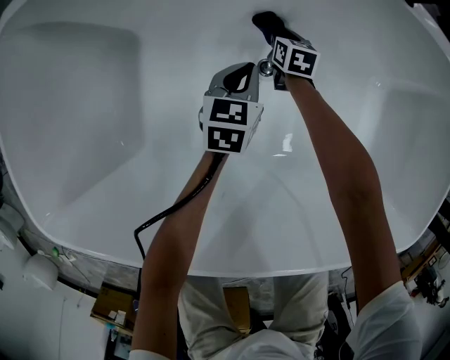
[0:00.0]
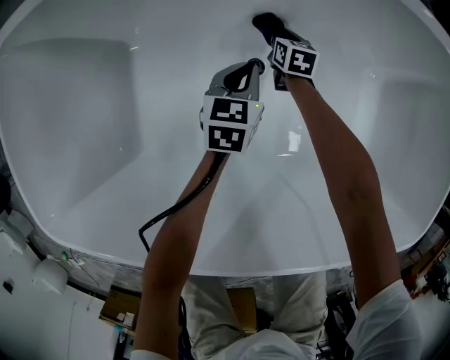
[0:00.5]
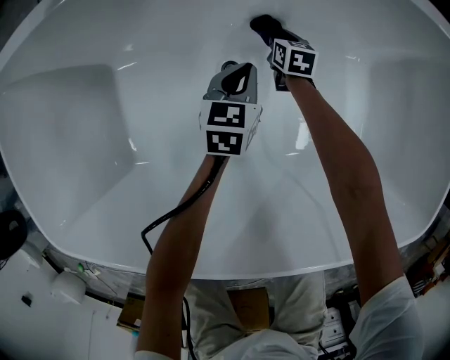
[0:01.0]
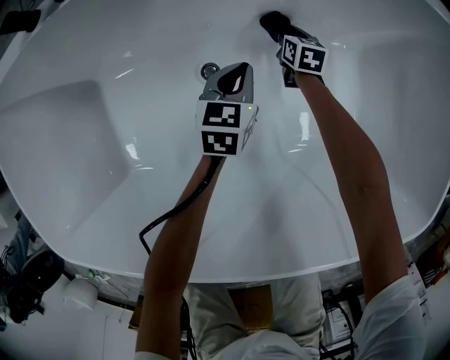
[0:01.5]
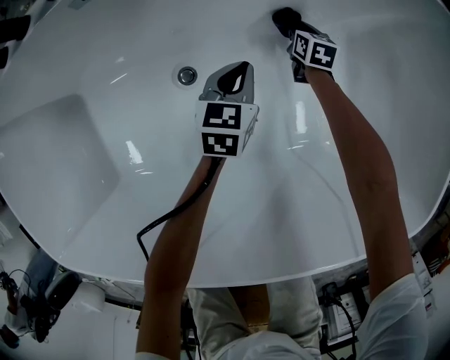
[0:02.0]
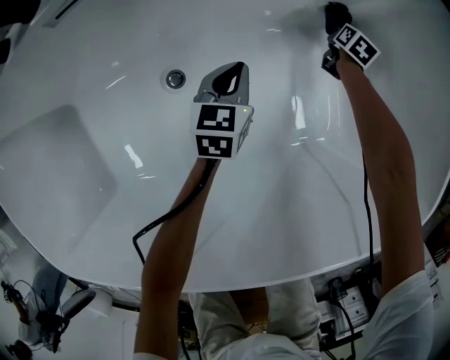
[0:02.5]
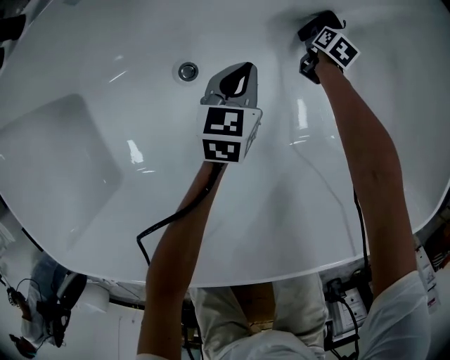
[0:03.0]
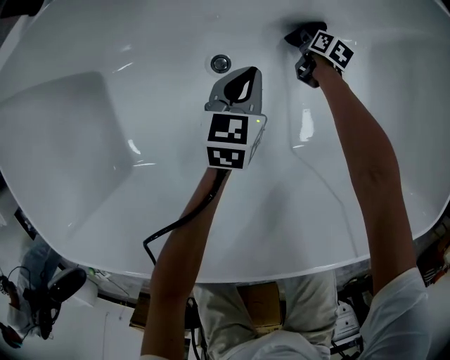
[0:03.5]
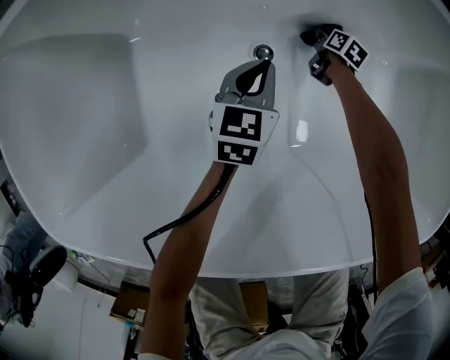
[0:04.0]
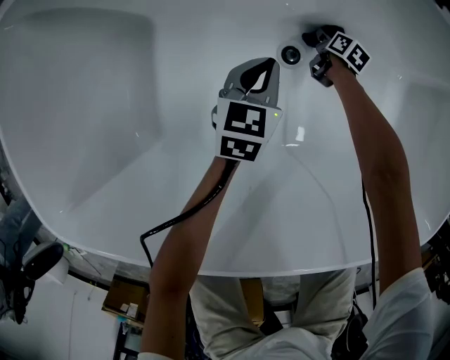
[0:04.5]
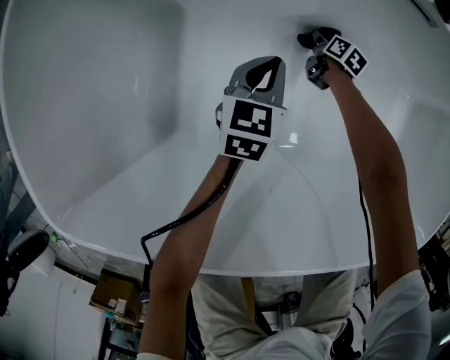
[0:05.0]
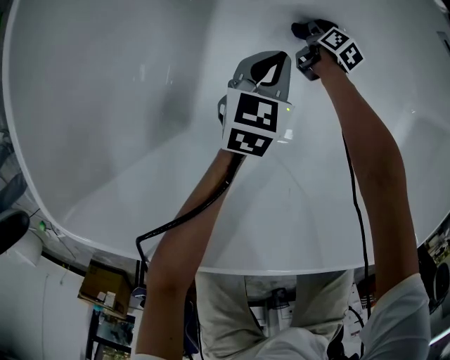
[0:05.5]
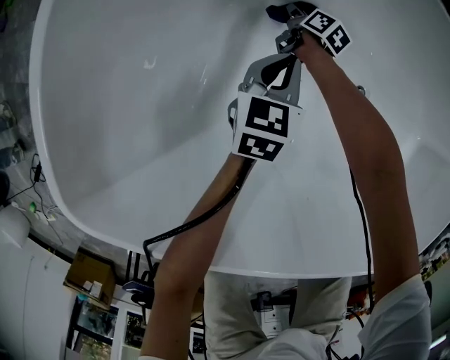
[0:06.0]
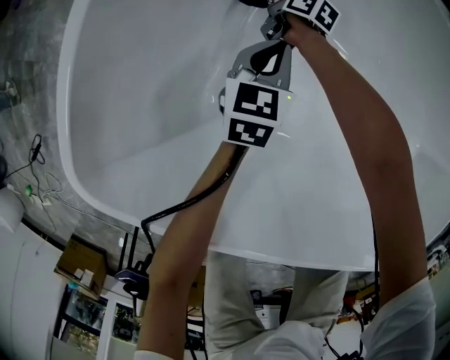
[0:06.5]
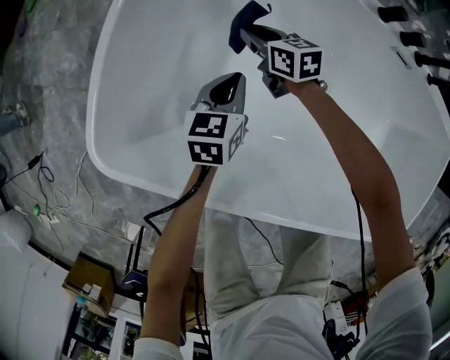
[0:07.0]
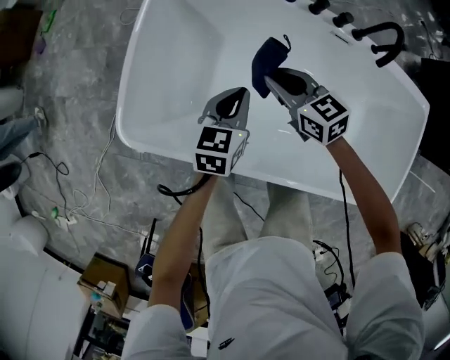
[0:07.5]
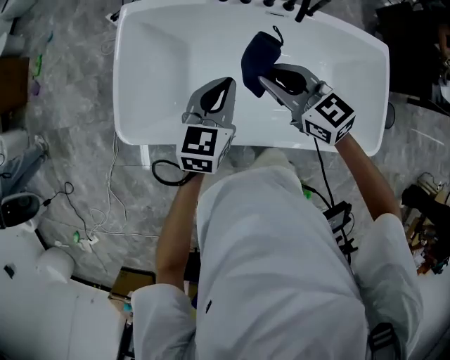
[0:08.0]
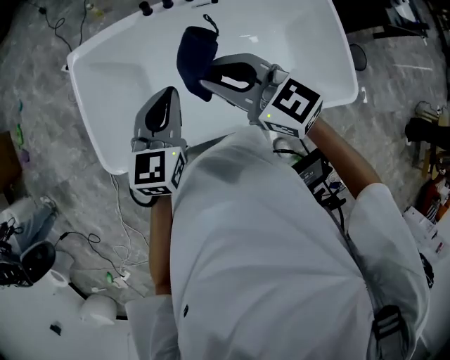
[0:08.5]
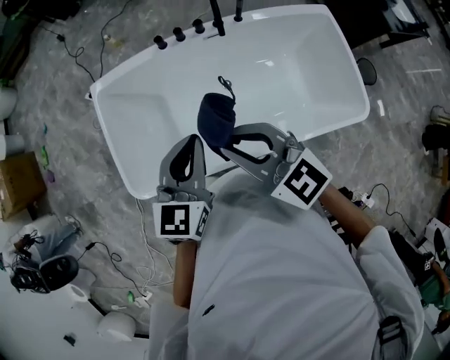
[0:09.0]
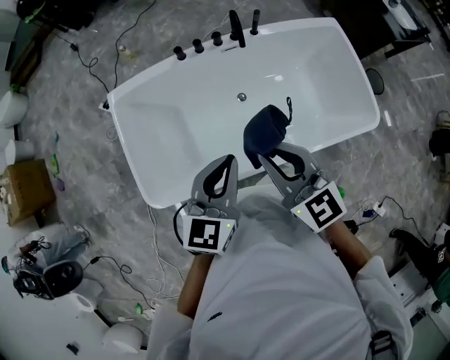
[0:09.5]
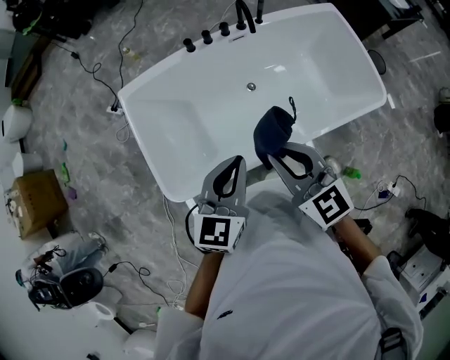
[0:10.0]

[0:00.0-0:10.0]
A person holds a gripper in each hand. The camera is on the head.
0:00.0 to 0:02.0: Both grippers move to the right, about 35 cm.
0:02.0 to 0:04.0: The right gripper shifts some 25 cm to the left, downward and backward, and turns by some 20 degrees. The left gripper travels to the left and backward by some 25 cm.
0:04.0 to 0:06.0: The right gripper goes approximately 50 cm to the left, and swivels approximately 20 degrees. Meanwhile the left gripper moves to the left, some 35 cm.
0:06.0 to 0:08.0: The right gripper is displaced upward and backward by roughly 90 cm, and rolls counterclockwise, seen from behind, by some 60 degrees, while the left gripper goes about 60 cm upward, and swivels roughly 20 degrees.
0:08.0 to 0:10.0: The left gripper ends up roughly 20 cm from where it was, and swivels roughly 20 degrees, while the right gripper moves roughly 20 cm, and turns by roughly 30 degrees.

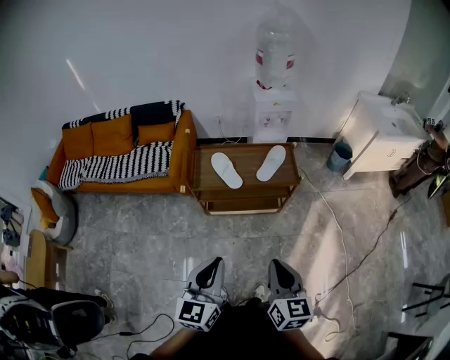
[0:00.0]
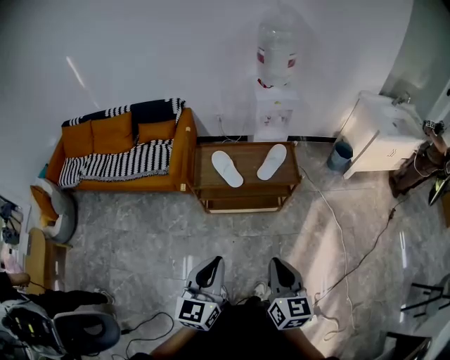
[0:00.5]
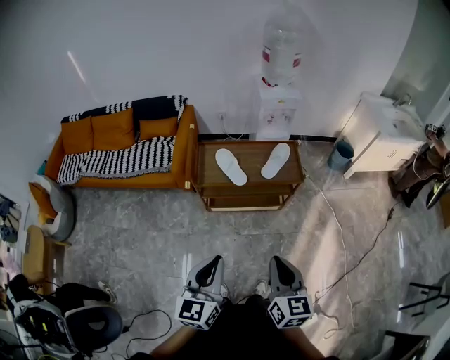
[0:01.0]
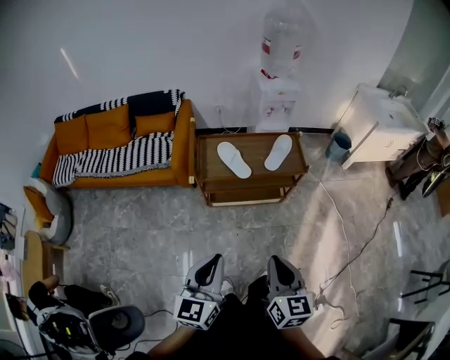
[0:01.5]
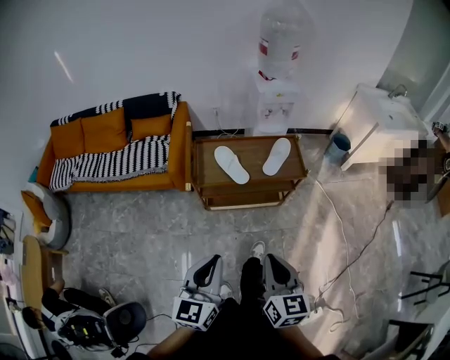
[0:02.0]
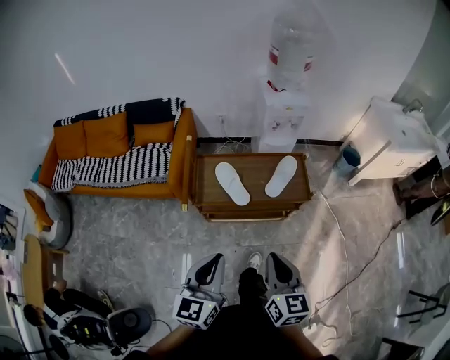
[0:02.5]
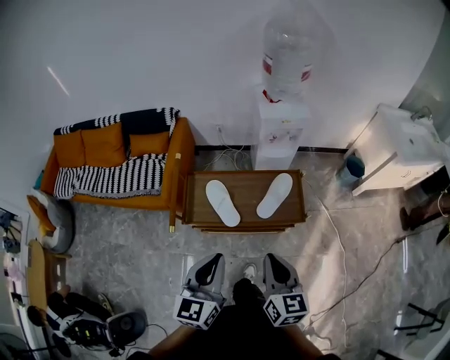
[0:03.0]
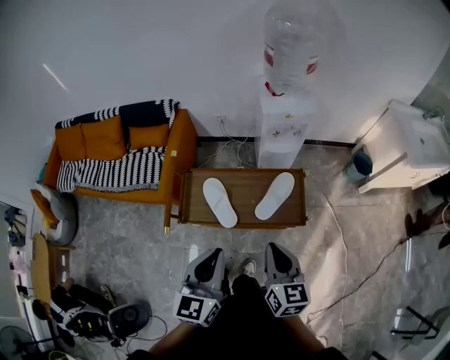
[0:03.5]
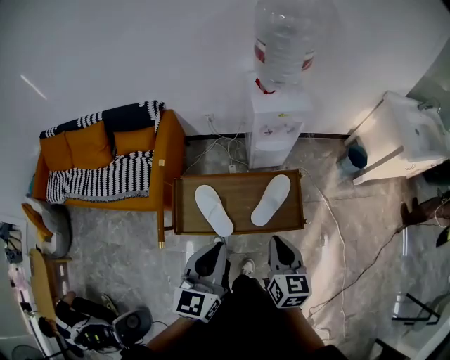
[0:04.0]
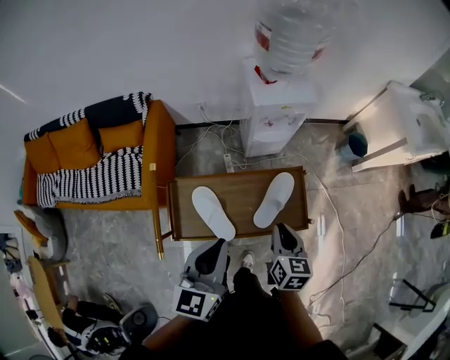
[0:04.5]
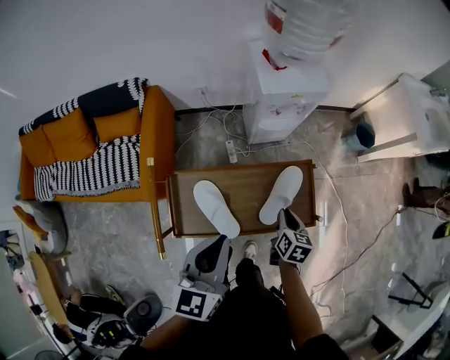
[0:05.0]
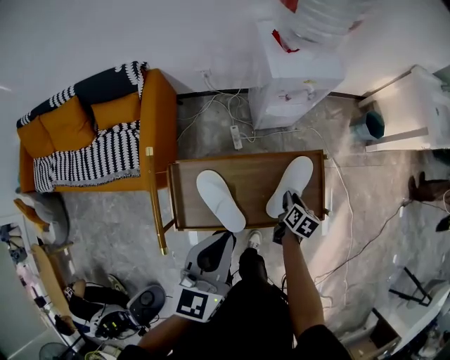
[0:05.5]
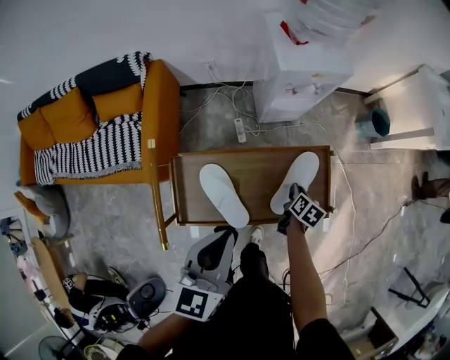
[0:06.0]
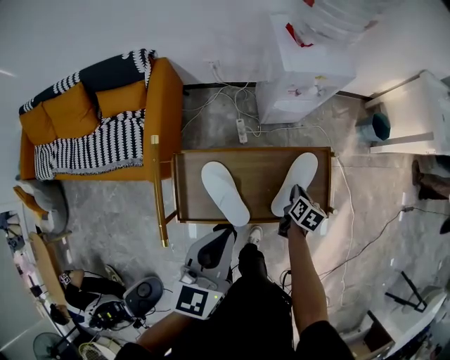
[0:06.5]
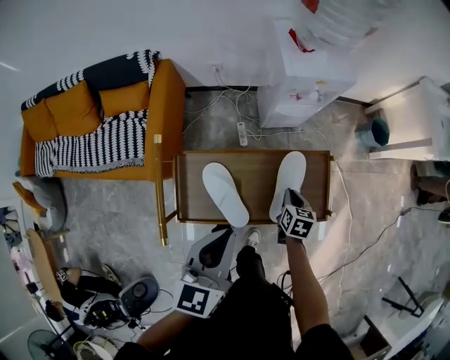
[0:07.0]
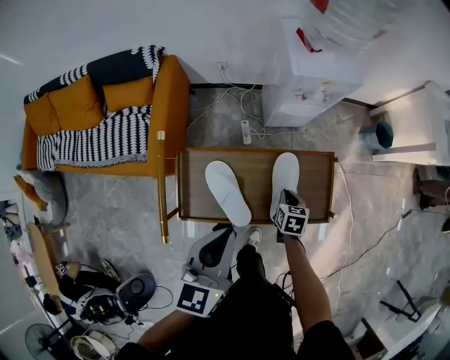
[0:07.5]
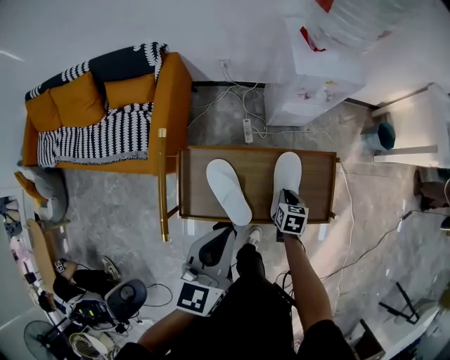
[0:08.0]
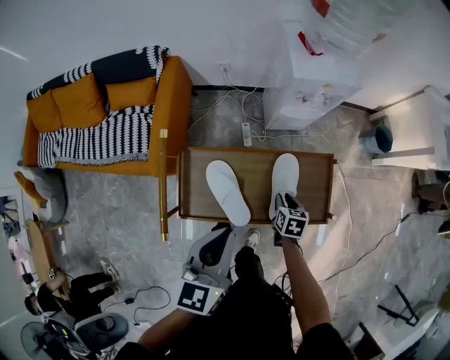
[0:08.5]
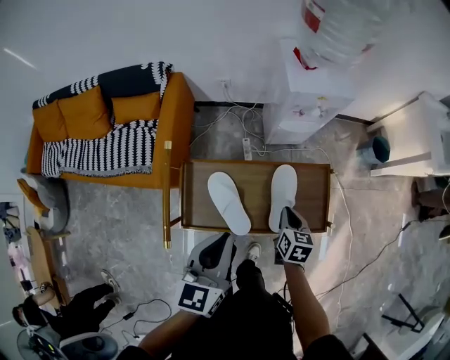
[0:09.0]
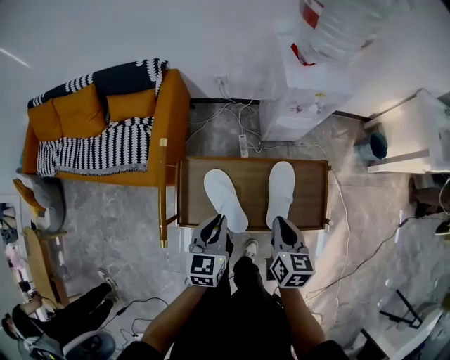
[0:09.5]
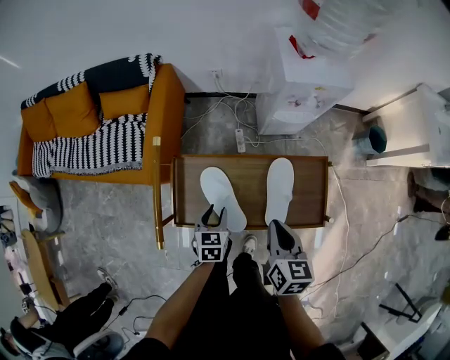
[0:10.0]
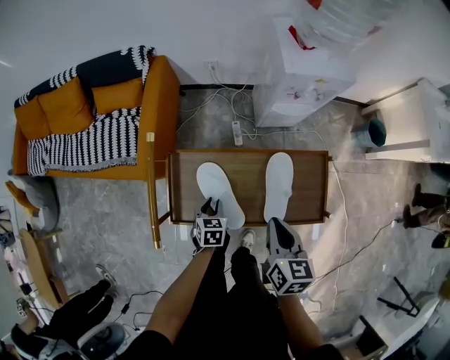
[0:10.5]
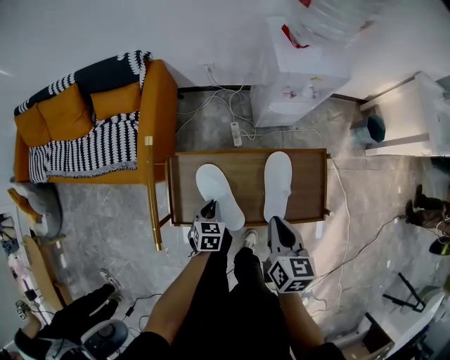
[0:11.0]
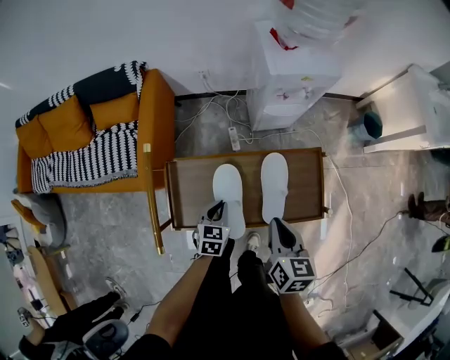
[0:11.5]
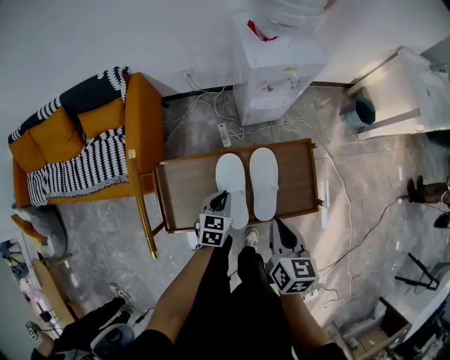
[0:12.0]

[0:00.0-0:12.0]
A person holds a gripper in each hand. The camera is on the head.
0:00.0 to 0:02.0: The two grippers go about 10 cm to the left.
0:02.0 to 0:04.0: The pair of grippers is taken forward, about 40 cm.
0:04.0 to 0:06.0: The right gripper shifts some 40 cm downward and forward, and angles its fingers downward, by some 30 degrees; the left gripper travels downward, forward and to the left by some 15 cm.
0:06.0 to 0:08.0: The right gripper shifts about 5 cm to the left, and turns by approximately 30 degrees.
0:08.0 to 0:10.0: The right gripper travels upward by roughly 20 cm, and changes its angle by about 20 degrees; the left gripper is displaced downward by some 25 cm, turns by approximately 20 degrees, and opens up.
0:10.0 to 0:12.0: The right gripper goes approximately 5 cm to the right. Meanwhile the left gripper heads to the right and forward, covering some 10 cm, and closes its fingers.

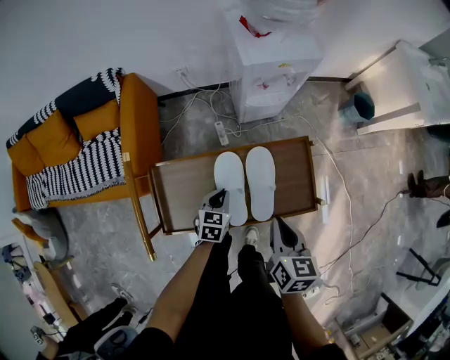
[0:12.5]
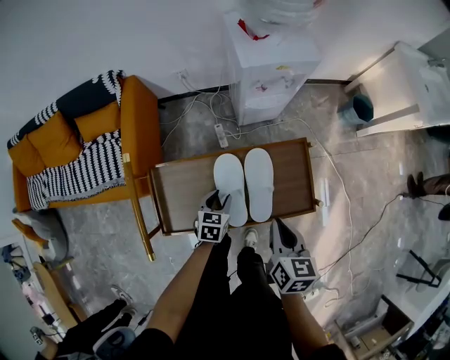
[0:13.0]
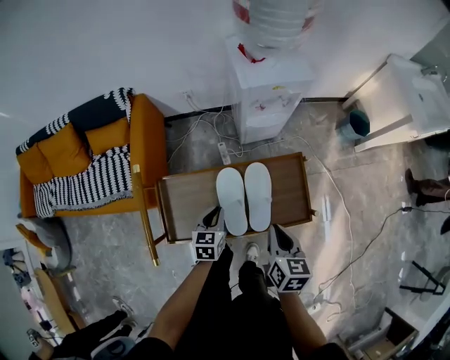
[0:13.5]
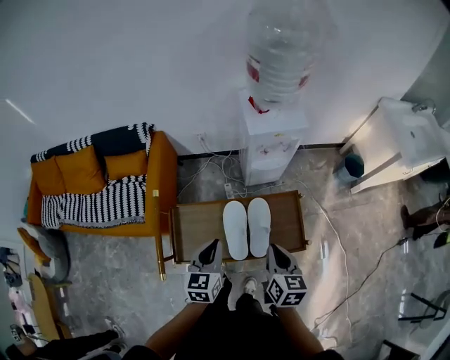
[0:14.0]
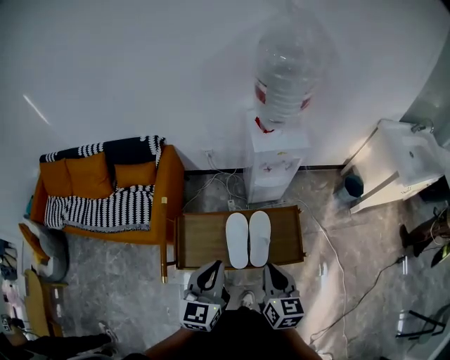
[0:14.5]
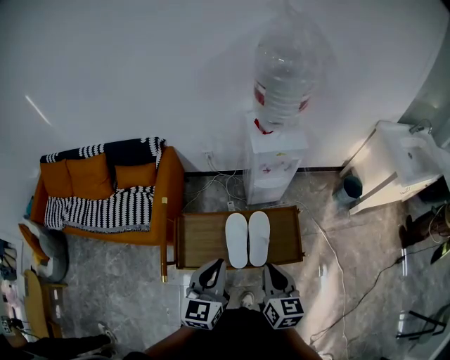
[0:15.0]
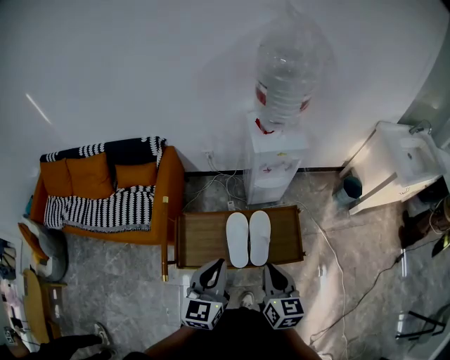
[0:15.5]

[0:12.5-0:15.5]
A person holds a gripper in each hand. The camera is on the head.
0:12.5 to 0:14.0: The right gripper goes about 10 cm upward, while the left gripper goes approximately 25 cm upward, swivels about 30 degrees, and opens and closes again.
0:14.0 to 0:15.5: The right gripper goes roughly 10 cm upward and backward. Meanwhile the left gripper moves upward and backward, some 15 cm.

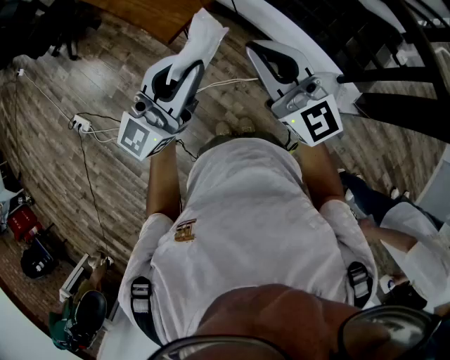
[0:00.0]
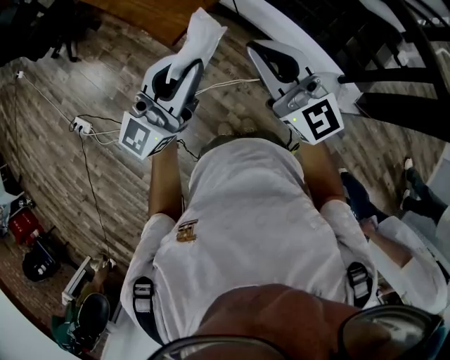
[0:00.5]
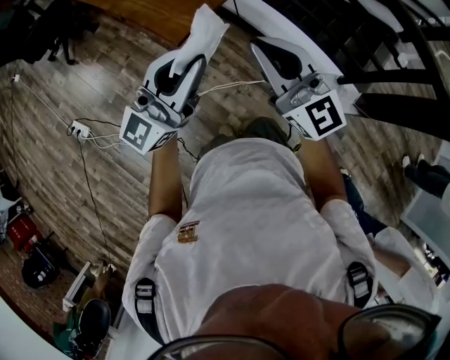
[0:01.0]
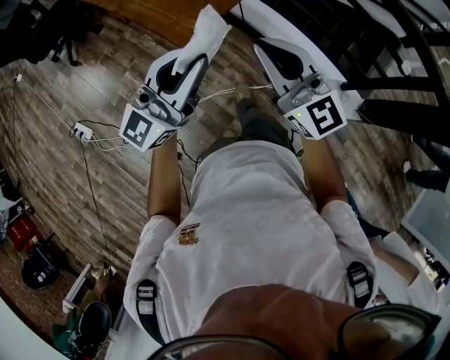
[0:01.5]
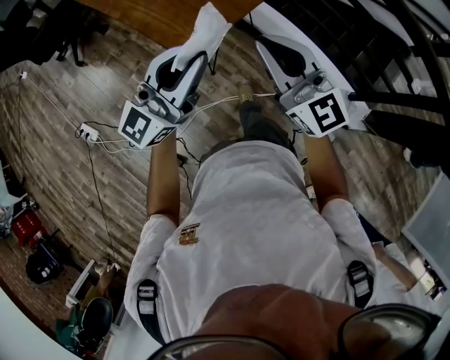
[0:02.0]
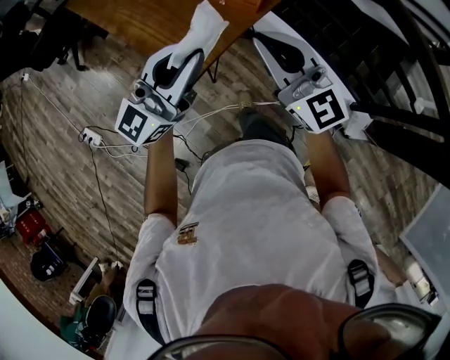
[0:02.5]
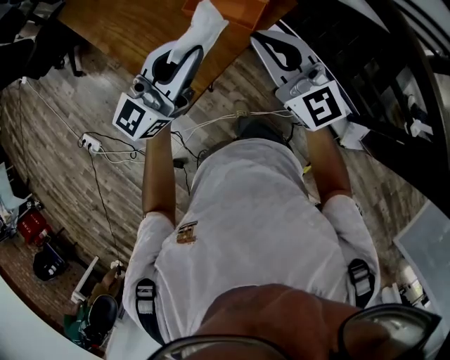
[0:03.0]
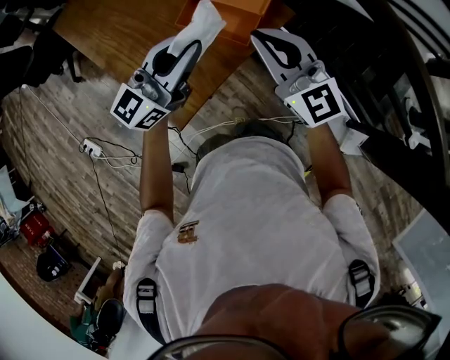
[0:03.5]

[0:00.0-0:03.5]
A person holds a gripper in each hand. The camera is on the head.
0:00.0 to 0:02.0: The grippers both shift forward and to the left by some 20 cm.
0:02.0 to 0:03.5: Both grippers travel together forward, approximately 40 cm.
